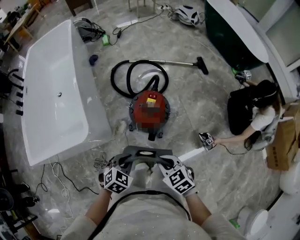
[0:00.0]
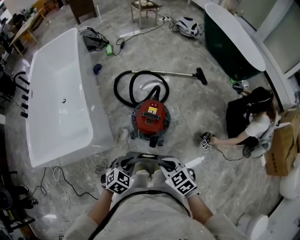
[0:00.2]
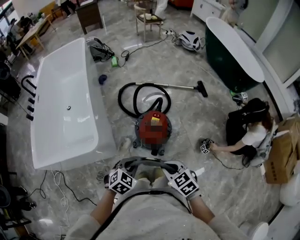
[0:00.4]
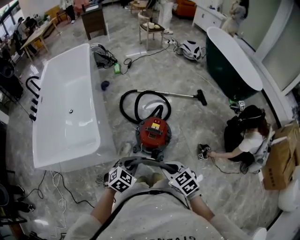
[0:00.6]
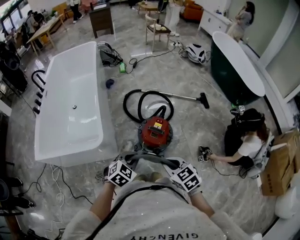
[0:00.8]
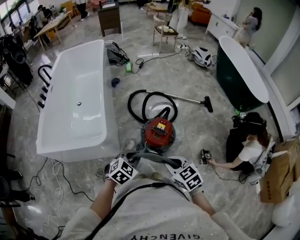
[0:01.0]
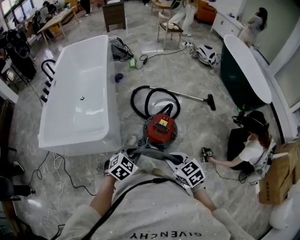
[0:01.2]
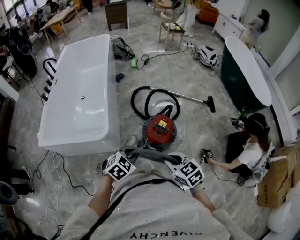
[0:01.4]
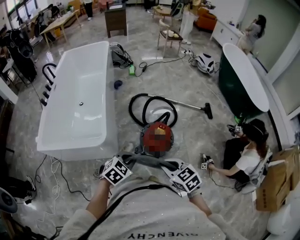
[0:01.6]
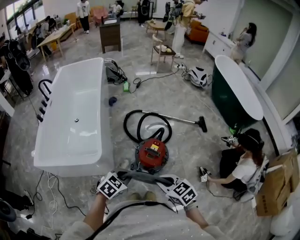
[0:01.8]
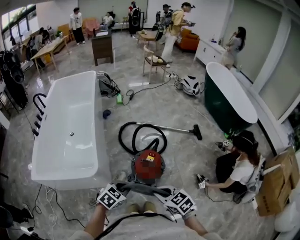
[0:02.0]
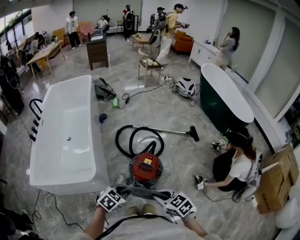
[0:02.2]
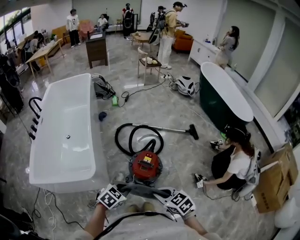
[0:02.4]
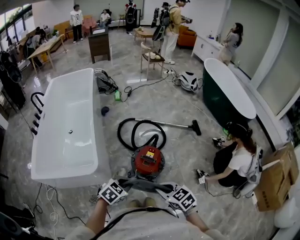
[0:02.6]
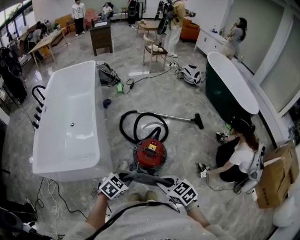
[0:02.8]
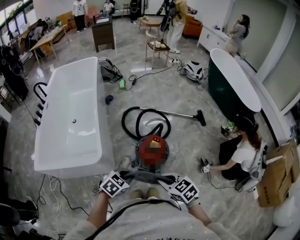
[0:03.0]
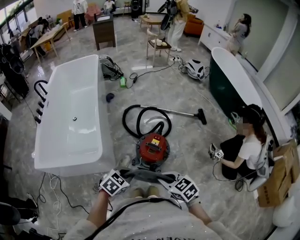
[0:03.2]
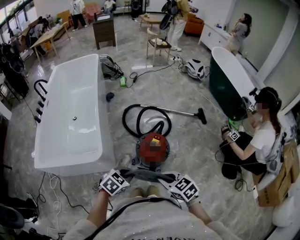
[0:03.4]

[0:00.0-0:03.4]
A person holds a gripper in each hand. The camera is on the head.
0:00.0 to 0:01.6: Both grippers move upward, about 15 cm.
0:01.6 to 0:03.4: The grippers make only small movements.

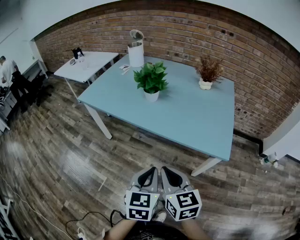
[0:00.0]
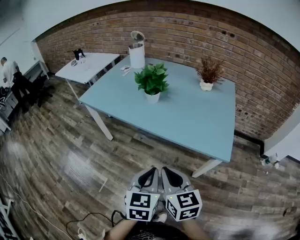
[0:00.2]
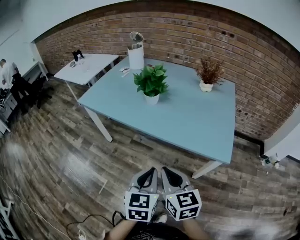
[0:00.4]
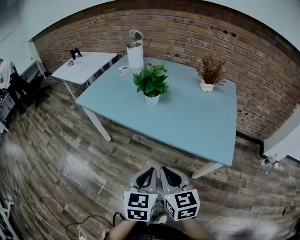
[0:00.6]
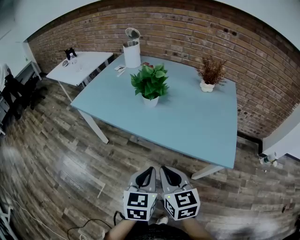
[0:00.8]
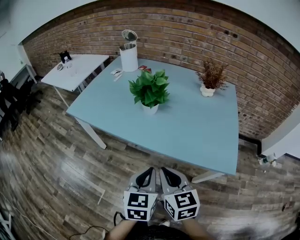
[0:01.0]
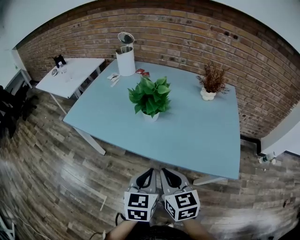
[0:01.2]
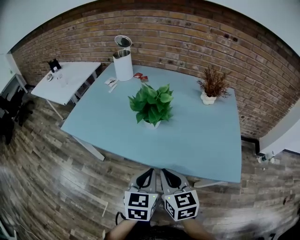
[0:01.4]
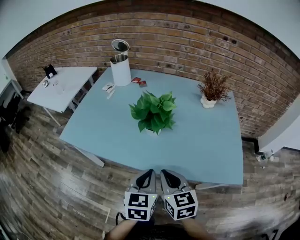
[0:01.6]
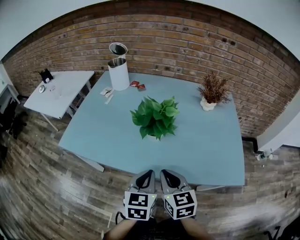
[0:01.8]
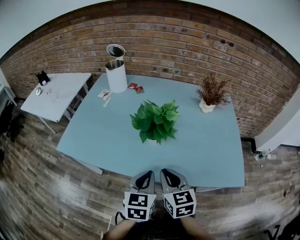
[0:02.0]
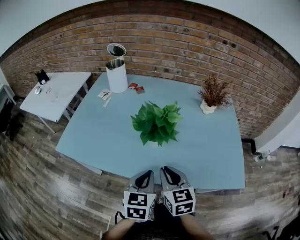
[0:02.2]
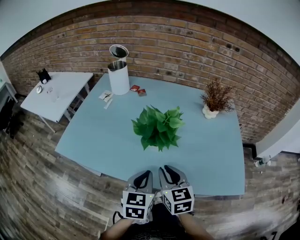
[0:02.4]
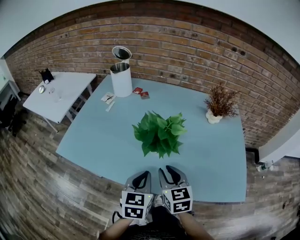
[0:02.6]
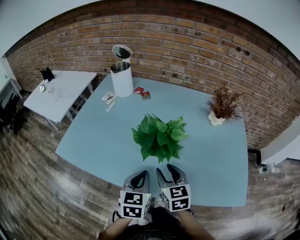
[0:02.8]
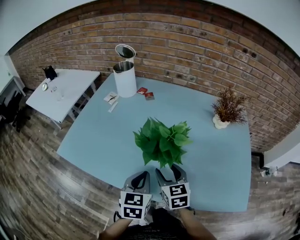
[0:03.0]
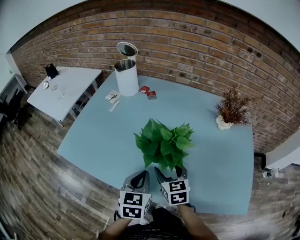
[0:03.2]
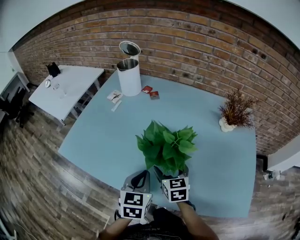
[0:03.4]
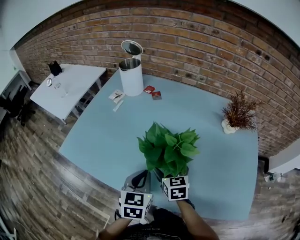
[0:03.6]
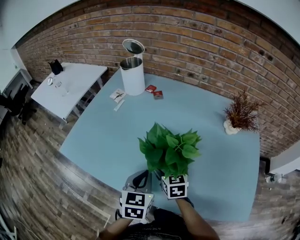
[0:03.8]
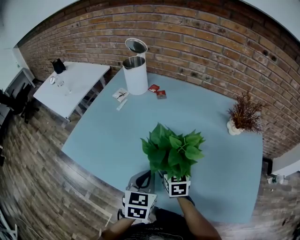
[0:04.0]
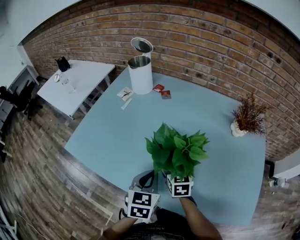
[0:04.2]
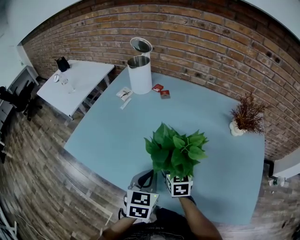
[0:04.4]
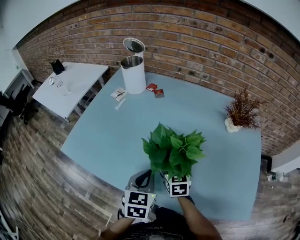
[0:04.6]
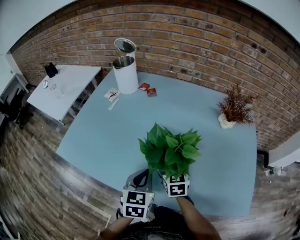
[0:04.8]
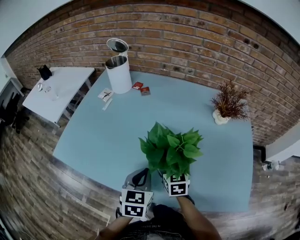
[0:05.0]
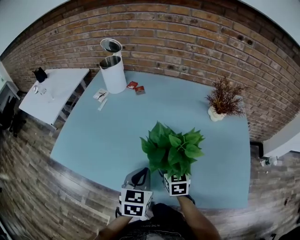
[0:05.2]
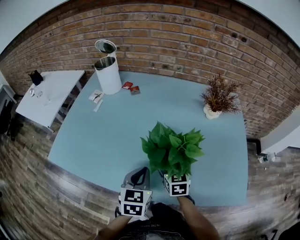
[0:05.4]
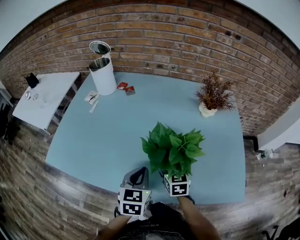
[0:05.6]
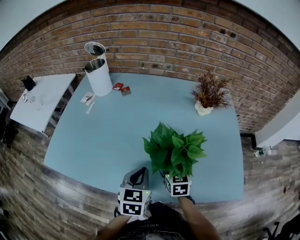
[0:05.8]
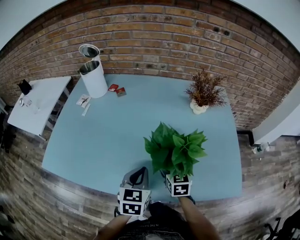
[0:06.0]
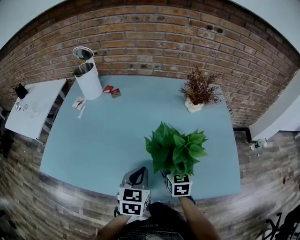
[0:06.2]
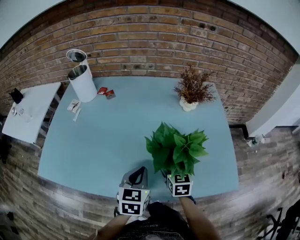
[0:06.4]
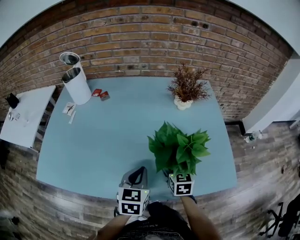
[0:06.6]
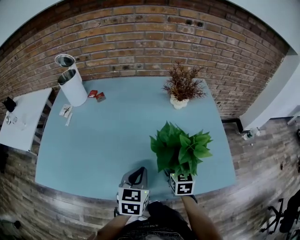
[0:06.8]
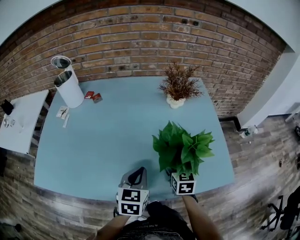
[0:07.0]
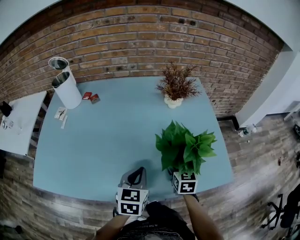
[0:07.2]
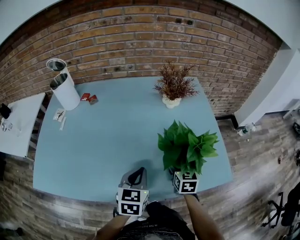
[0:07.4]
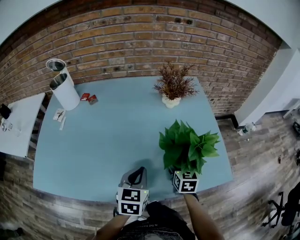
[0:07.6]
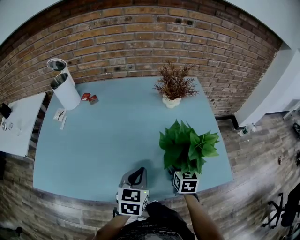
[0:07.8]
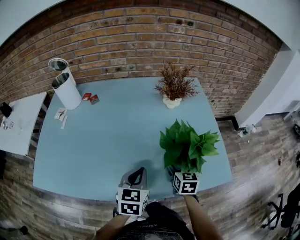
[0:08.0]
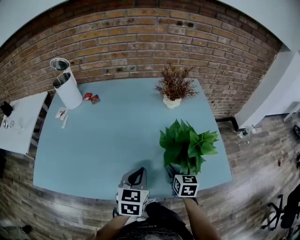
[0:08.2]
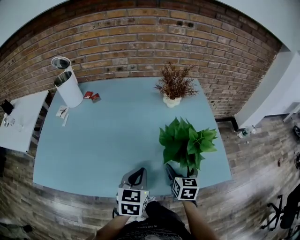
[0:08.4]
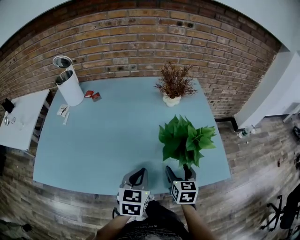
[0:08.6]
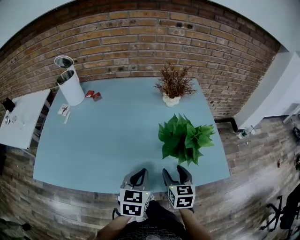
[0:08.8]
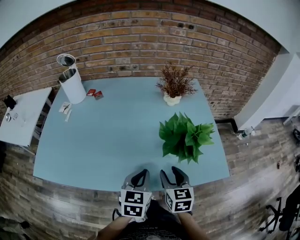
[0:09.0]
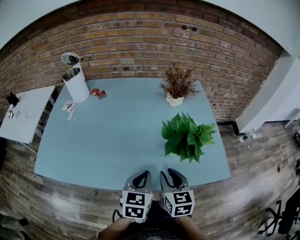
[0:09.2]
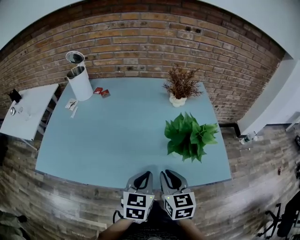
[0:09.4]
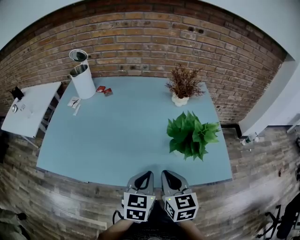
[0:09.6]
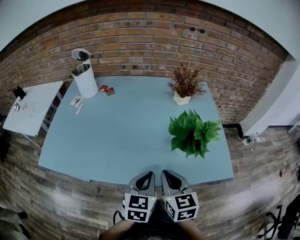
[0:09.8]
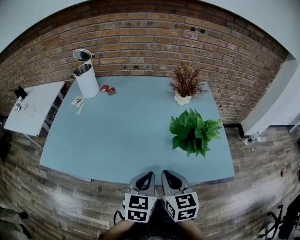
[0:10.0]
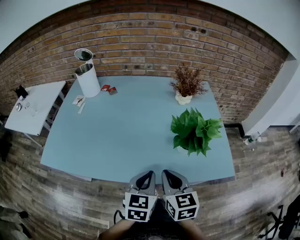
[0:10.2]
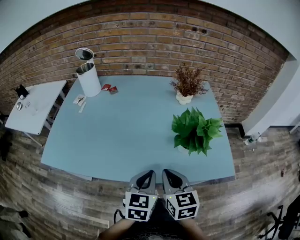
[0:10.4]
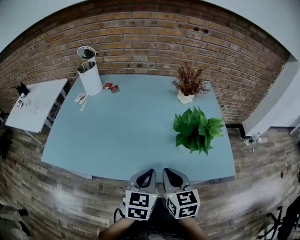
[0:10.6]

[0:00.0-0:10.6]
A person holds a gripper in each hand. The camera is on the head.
0:00.0 to 0:01.6: Both grippers move forward, roughly 25 cm.
0:01.6 to 0:03.0: The two grippers go about 15 cm forward. The right gripper opens up.
0:03.0 to 0:04.6: The right gripper goes about 10 cm forward and downward, and opens up.
0:04.6 to 0:06.0: The left gripper shifts some 10 cm to the right. Meanwhile the right gripper is displaced to the right by about 15 cm.
0:06.0 to 0:07.6: The right gripper is displaced to the right by roughly 15 cm; the left gripper shifts some 10 cm to the right.
0:07.6 to 0:09.0: The right gripper is displaced backward and upward by roughly 15 cm, and closes. The left gripper moves backward, some 5 cm.
0:09.0 to 0:10.6: The left gripper changes place by some 5 cm. The right gripper heads to the left, upward and backward, covering some 10 cm, and closes.

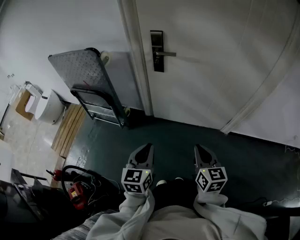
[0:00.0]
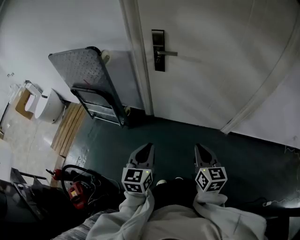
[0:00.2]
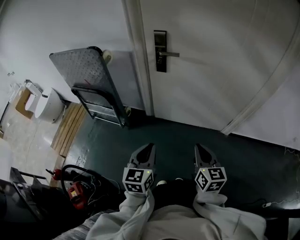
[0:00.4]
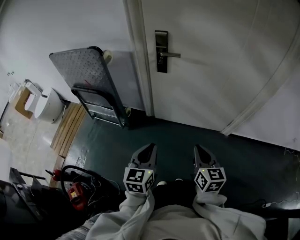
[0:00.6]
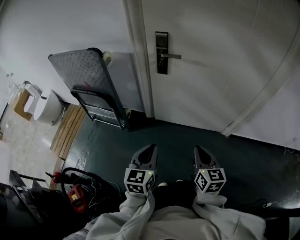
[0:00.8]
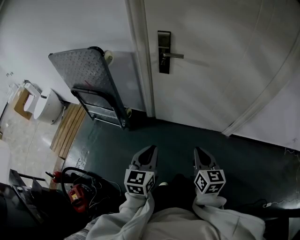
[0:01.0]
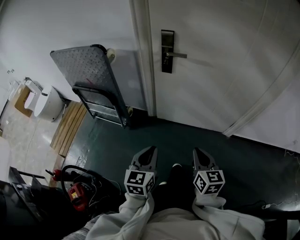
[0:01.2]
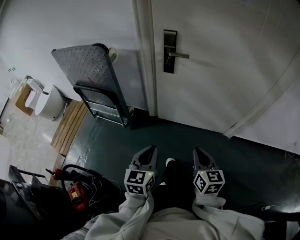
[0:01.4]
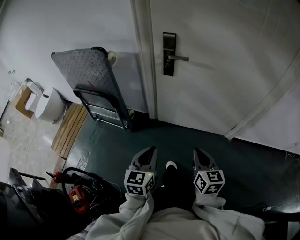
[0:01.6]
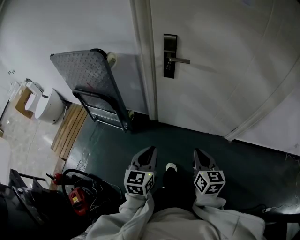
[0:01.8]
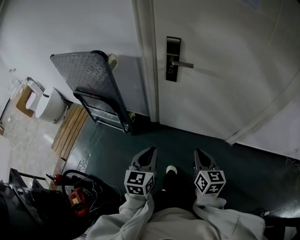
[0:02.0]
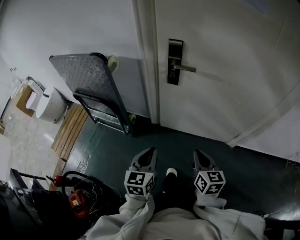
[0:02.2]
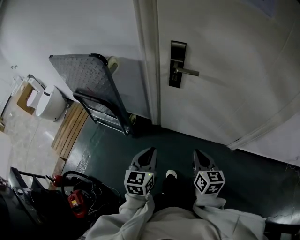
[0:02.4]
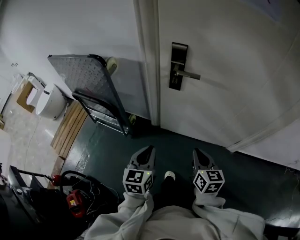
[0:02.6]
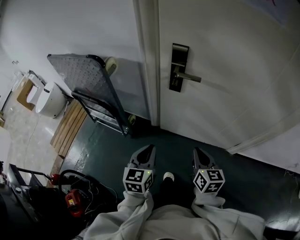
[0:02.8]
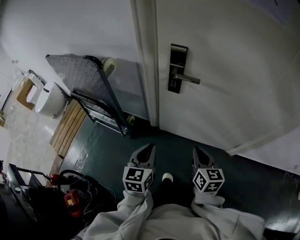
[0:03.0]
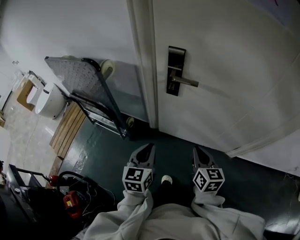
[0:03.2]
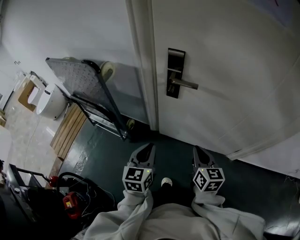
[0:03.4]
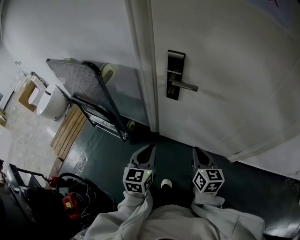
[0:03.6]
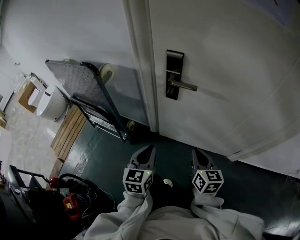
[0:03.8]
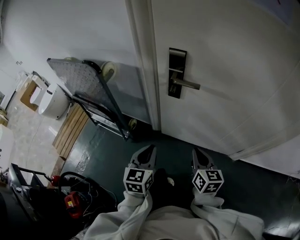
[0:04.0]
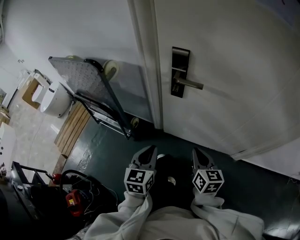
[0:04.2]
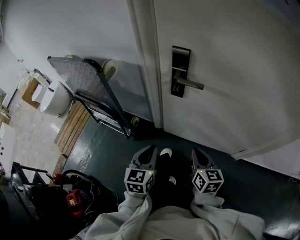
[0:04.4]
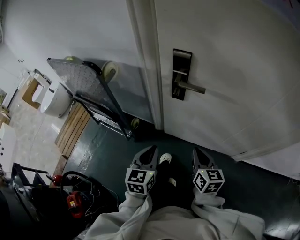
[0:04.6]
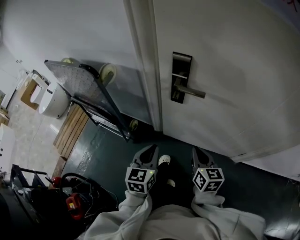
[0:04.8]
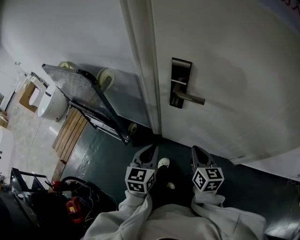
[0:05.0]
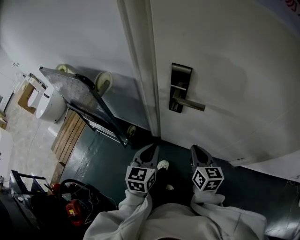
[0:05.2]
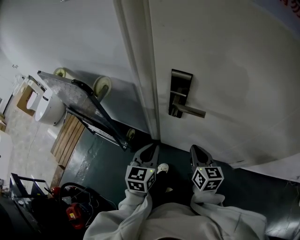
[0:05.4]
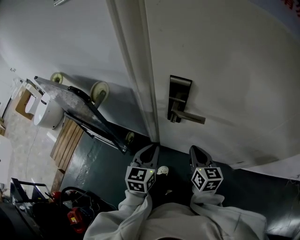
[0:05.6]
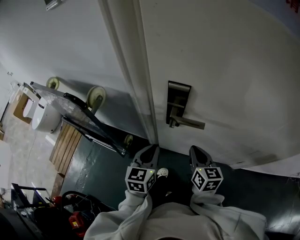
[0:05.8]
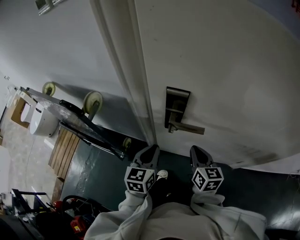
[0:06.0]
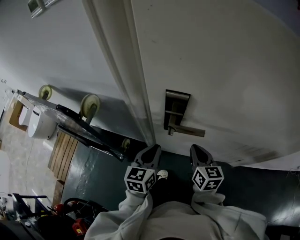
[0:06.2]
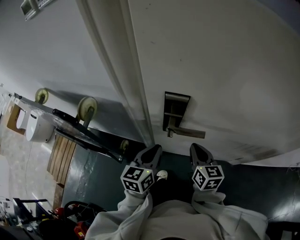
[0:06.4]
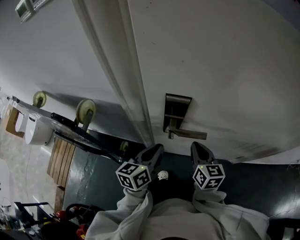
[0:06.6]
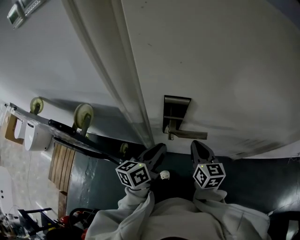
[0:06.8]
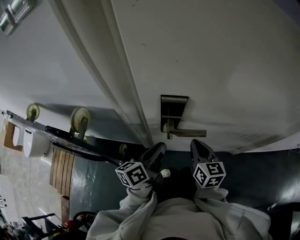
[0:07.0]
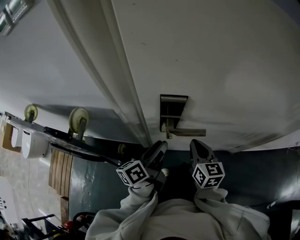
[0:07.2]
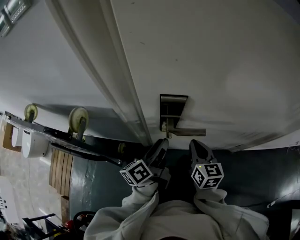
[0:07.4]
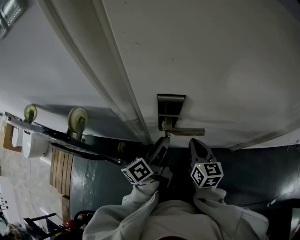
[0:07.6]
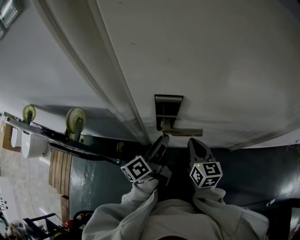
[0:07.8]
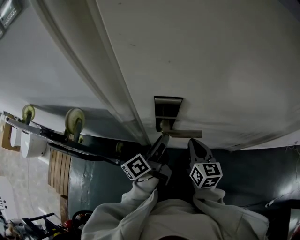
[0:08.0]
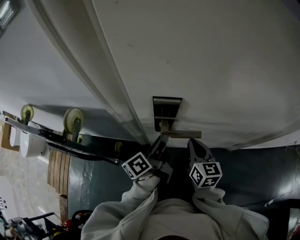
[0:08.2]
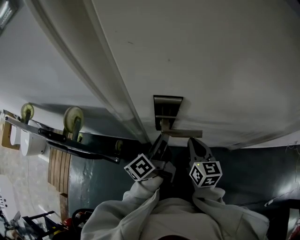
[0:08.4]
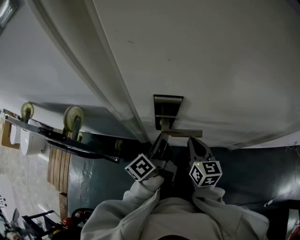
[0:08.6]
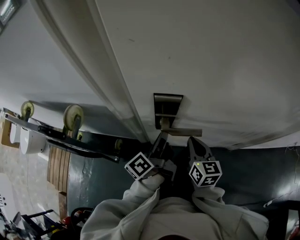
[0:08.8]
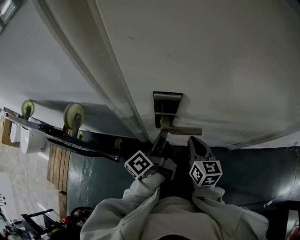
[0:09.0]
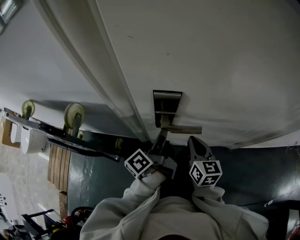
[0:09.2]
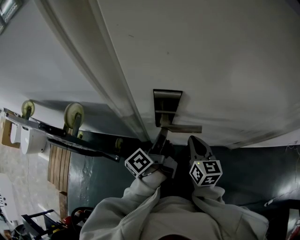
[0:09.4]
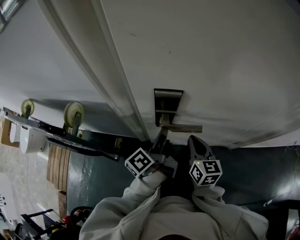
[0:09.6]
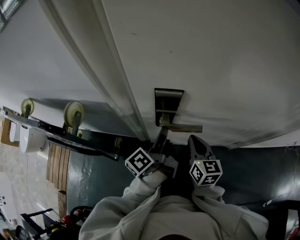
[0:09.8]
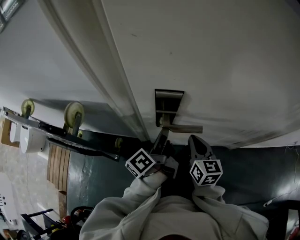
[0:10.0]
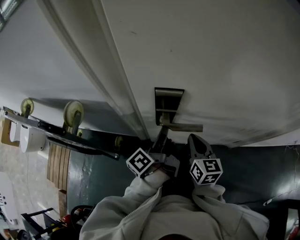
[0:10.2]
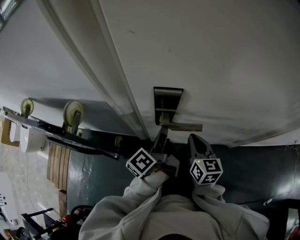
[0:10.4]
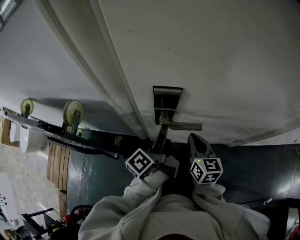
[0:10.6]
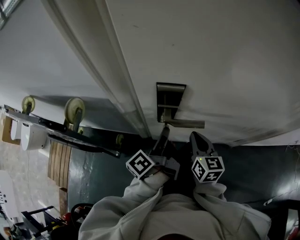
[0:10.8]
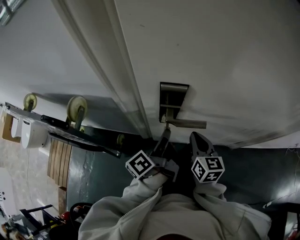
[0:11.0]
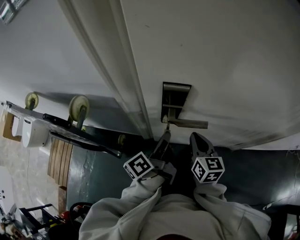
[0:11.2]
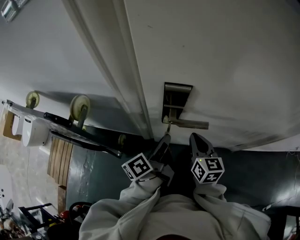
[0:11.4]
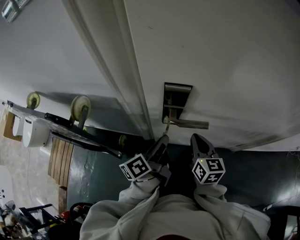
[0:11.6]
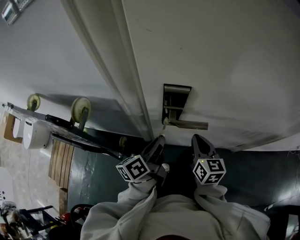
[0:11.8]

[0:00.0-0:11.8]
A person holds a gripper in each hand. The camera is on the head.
0:00.0 to 0:01.4: The right gripper moves to the left, about 5 cm.
0:01.4 to 0:03.0: Both grippers travel together forward, roughly 20 cm.
0:03.0 to 0:04.4: The grippers stay close to where they were, moving slightly.
0:04.4 to 0:06.0: Both grippers move forward, roughly 20 cm.
0:06.0 to 0:07.4: The left gripper travels forward by some 5 cm, twists about 50 degrees counterclockwise, seen from behind, and opens up.
0:07.4 to 0:08.8: The left gripper closes its fingers.
0:08.8 to 0:10.4: There are only small adjustments of the grippers.
0:10.4 to 0:11.8: The left gripper moves approximately 5 cm, and changes its angle by about 20 degrees.
